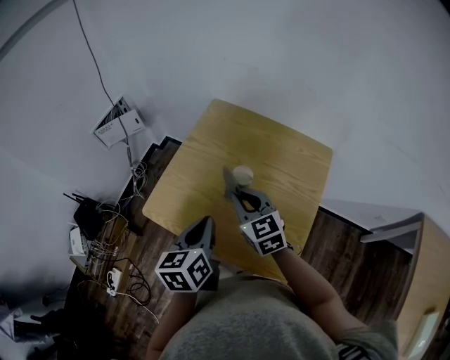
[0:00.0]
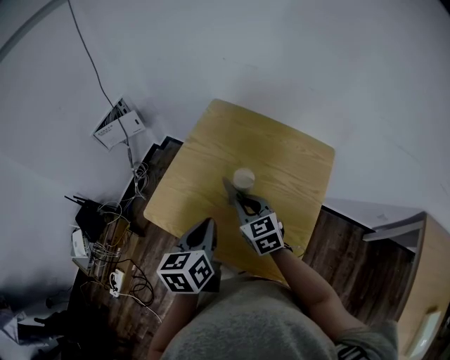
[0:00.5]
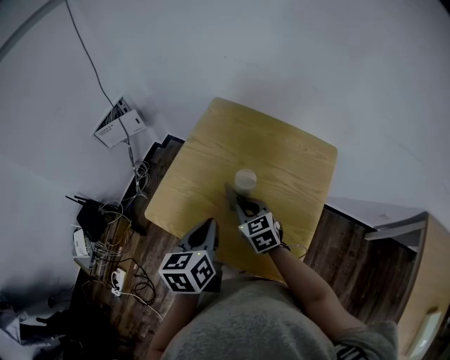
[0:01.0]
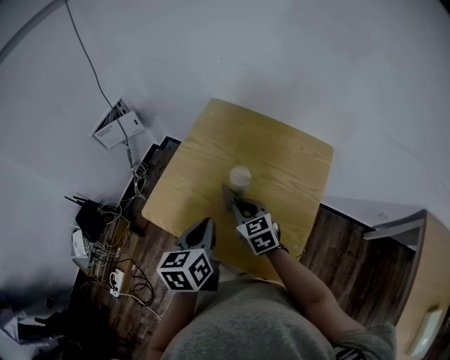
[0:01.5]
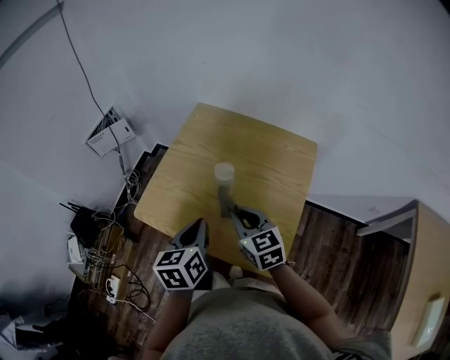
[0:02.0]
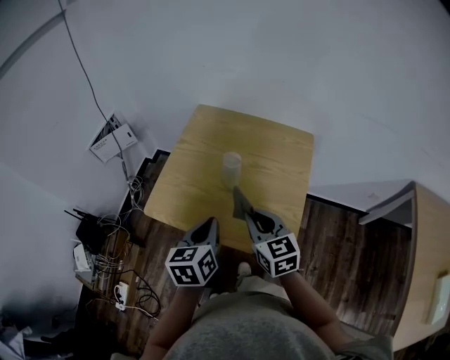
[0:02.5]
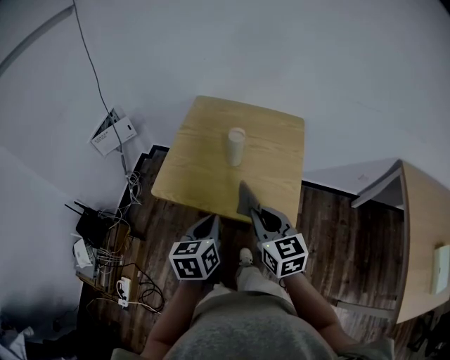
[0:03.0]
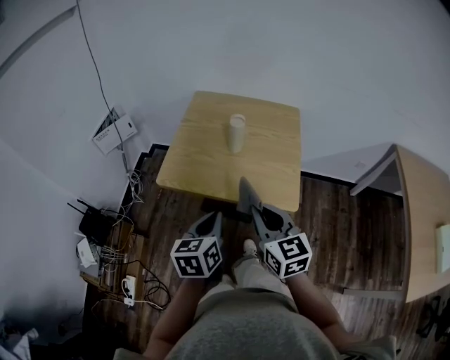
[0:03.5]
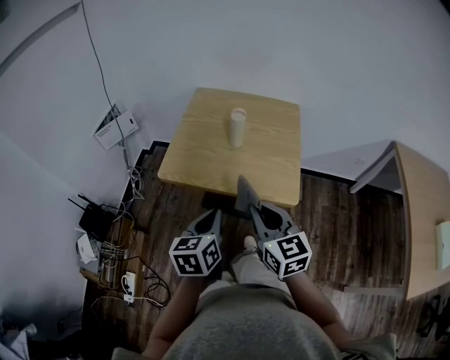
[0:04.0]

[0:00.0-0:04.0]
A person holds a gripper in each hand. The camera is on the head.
0:00.0 to 0:02.0: The right gripper moves backward, approximately 5 cm, and travels downward and back again, roughly 10 cm each way.
0:02.0 to 0:04.0: Both grippers travel together backward, approximately 25 cm. The right gripper rotates roughly 20 degrees.

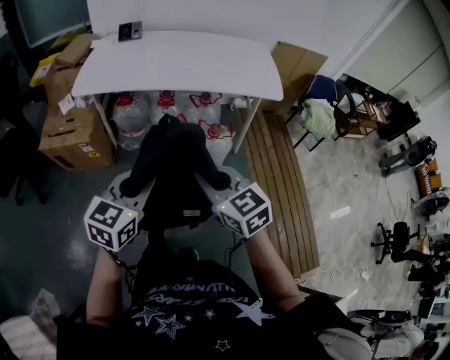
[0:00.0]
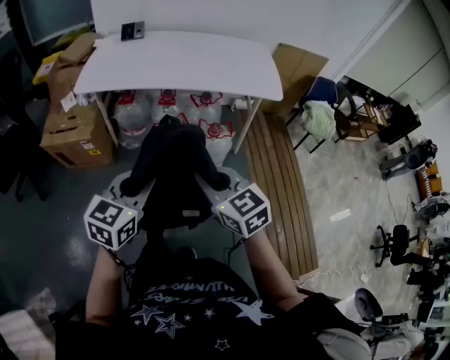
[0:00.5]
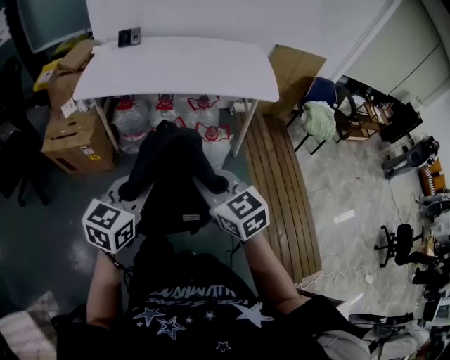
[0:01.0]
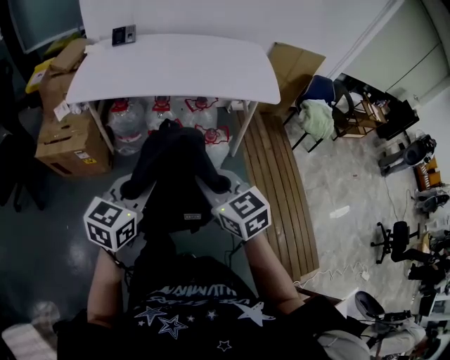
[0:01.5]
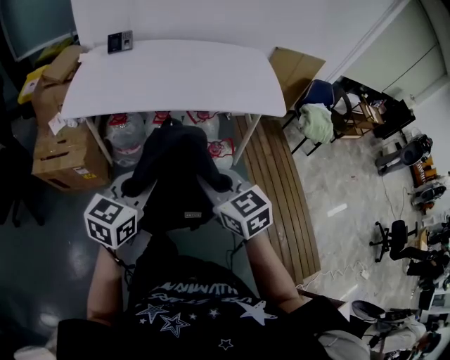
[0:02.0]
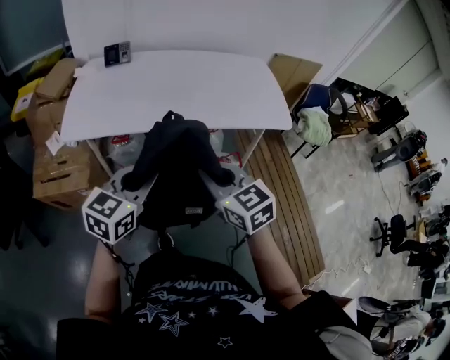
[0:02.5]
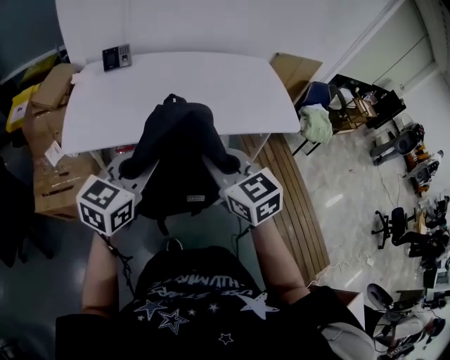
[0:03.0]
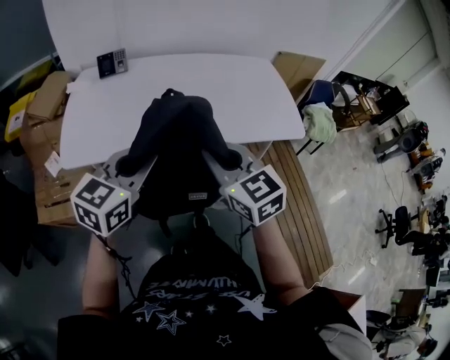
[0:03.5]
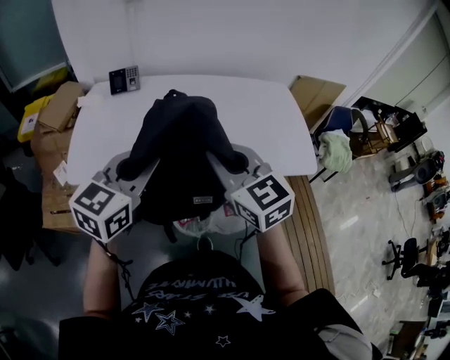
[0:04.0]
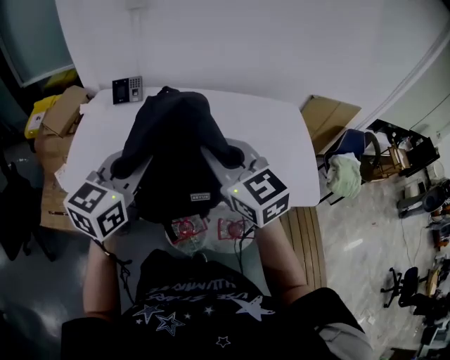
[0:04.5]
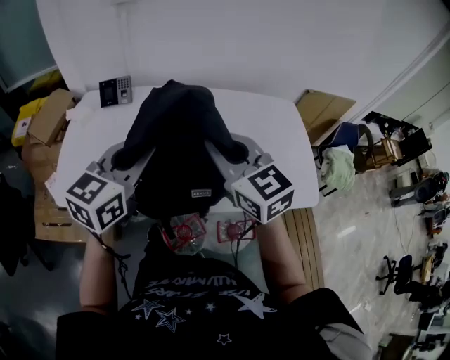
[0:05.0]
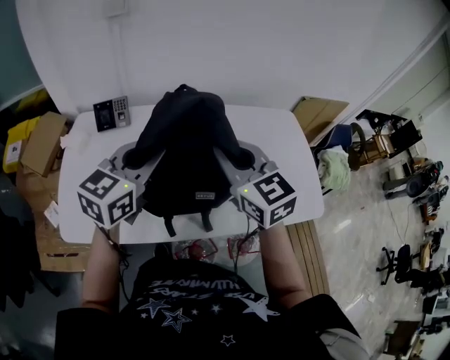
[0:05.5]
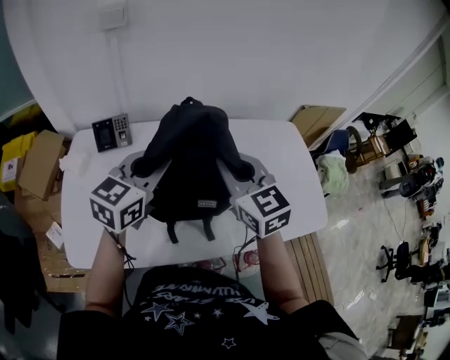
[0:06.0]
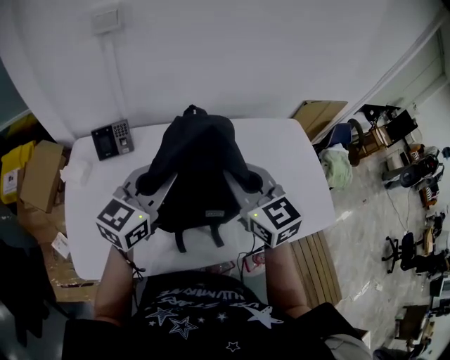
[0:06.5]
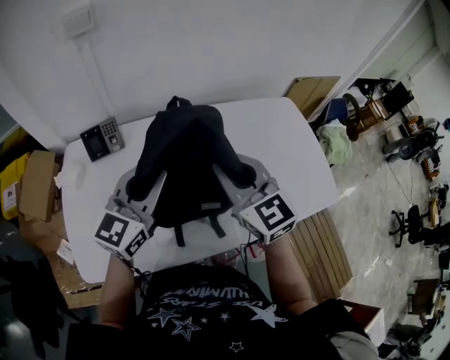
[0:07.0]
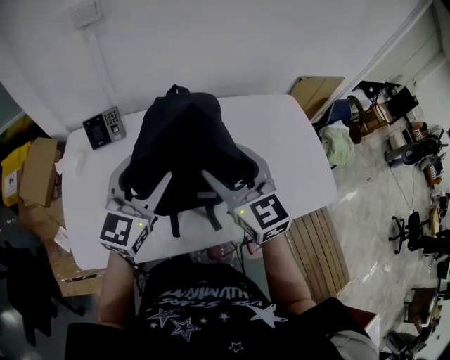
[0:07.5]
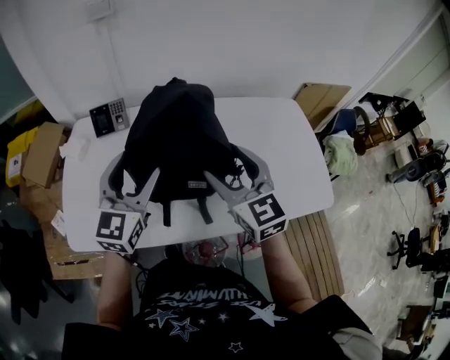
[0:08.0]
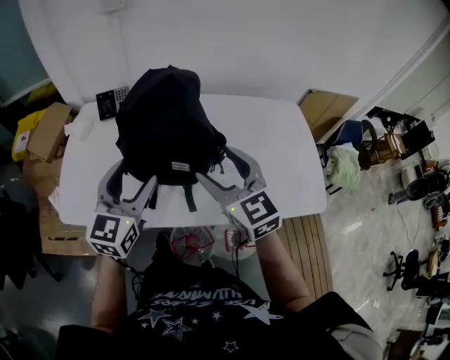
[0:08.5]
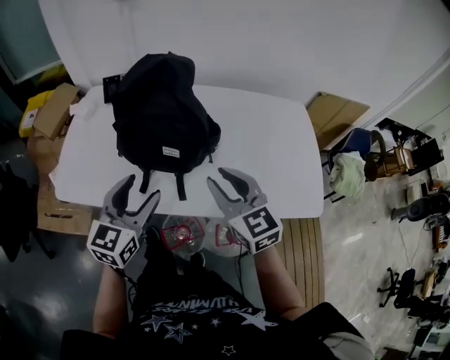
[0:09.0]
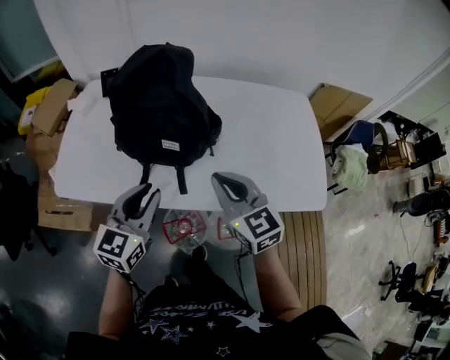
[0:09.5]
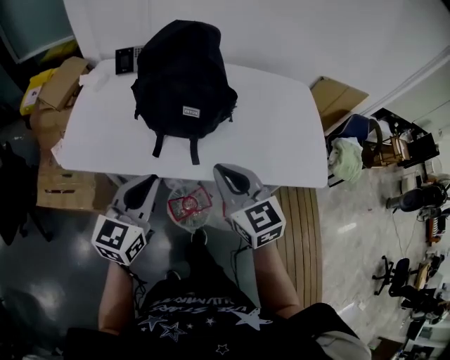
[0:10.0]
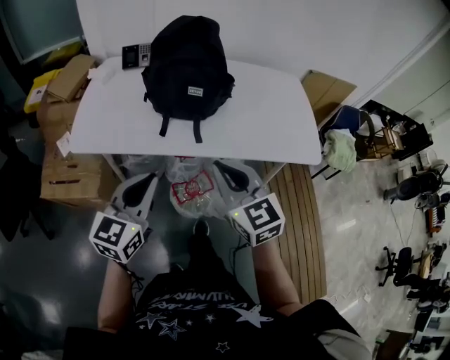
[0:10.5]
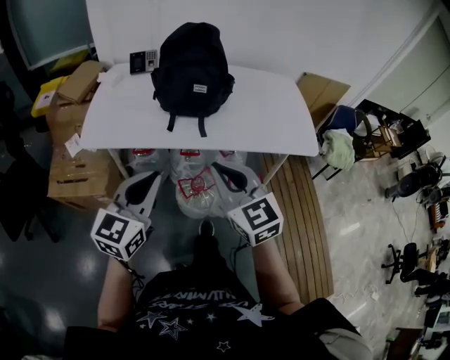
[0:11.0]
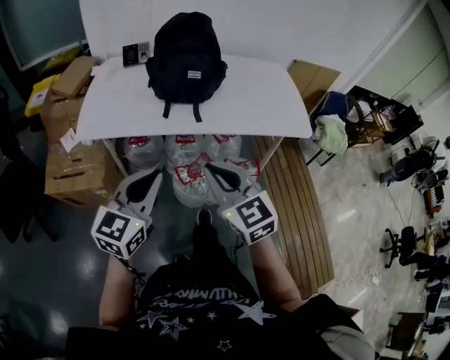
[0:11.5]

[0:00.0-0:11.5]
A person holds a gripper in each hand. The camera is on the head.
0:00.0 to 0:02.0: The grippers both shift forward by some 15 cm.
0:02.0 to 0:04.0: The two grippers go approximately 35 cm forward.
0:04.0 to 0:06.0: Both grippers travel together forward, about 30 cm.
0:06.0 to 0:07.5: The left gripper opens; the right gripper opens.
0:07.5 to 0:09.5: The right gripper is displaced backward, to the right and downward by roughly 20 cm, and closes up. Meanwhile the left gripper goes roughly 20 cm backward and downward, rotates approximately 20 degrees, and closes its fingers.
0:09.5 to 0:11.5: Both grippers travel together backward, about 30 cm.

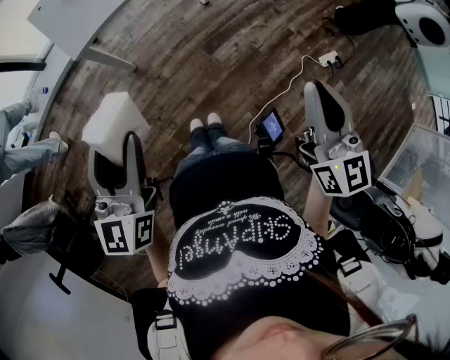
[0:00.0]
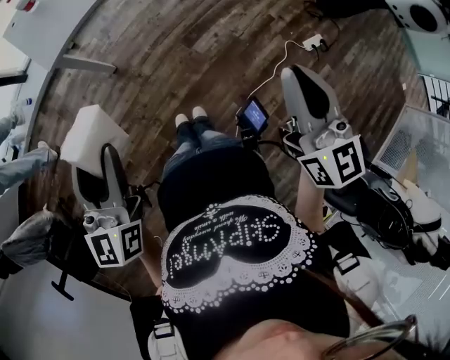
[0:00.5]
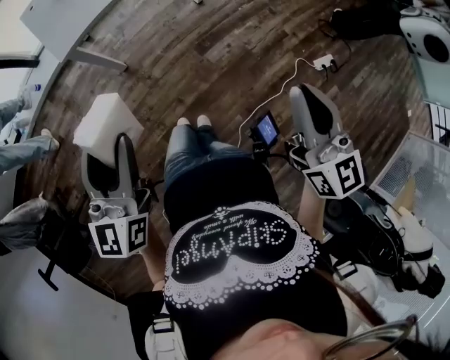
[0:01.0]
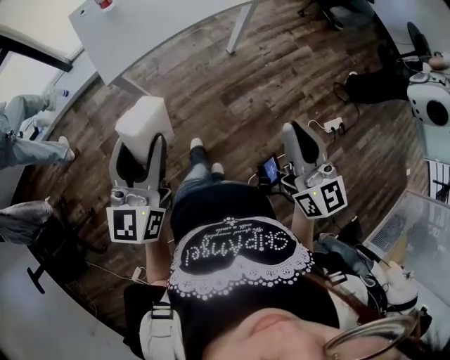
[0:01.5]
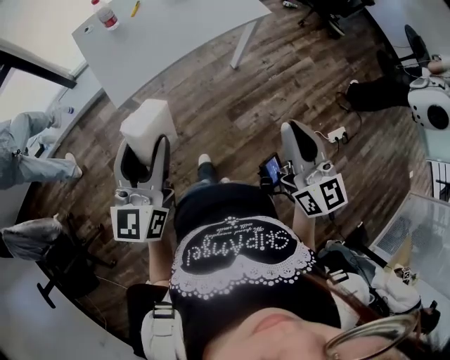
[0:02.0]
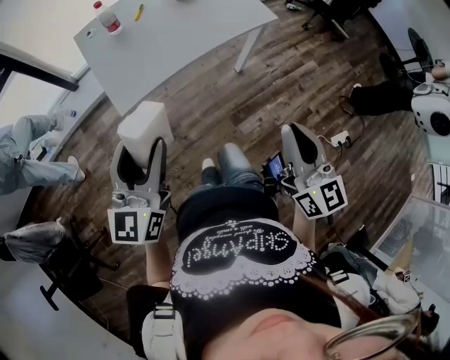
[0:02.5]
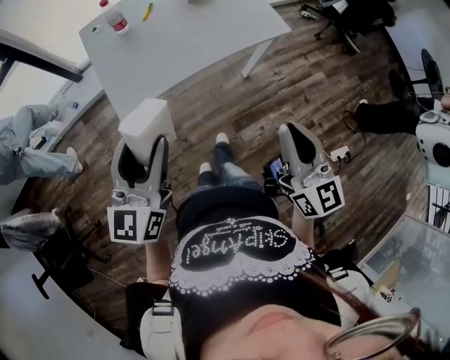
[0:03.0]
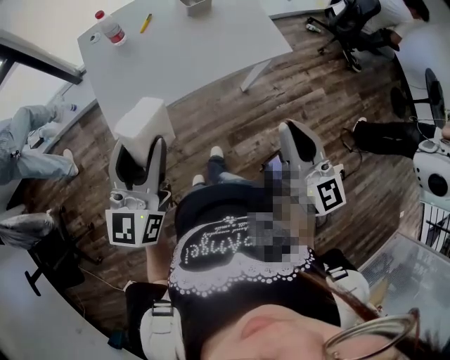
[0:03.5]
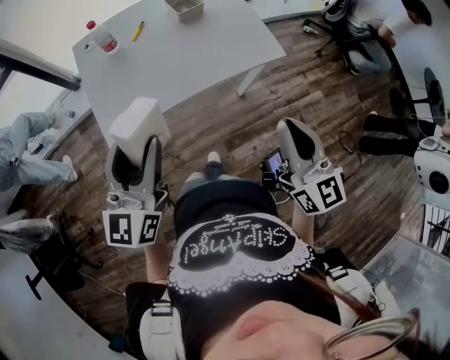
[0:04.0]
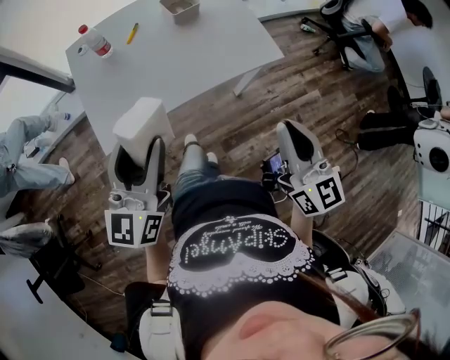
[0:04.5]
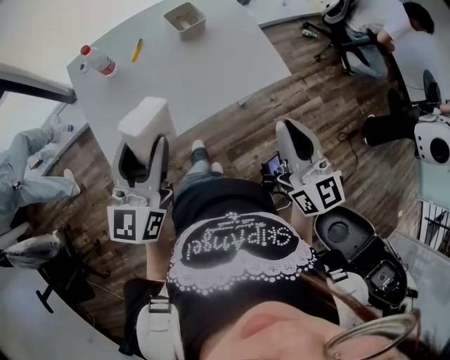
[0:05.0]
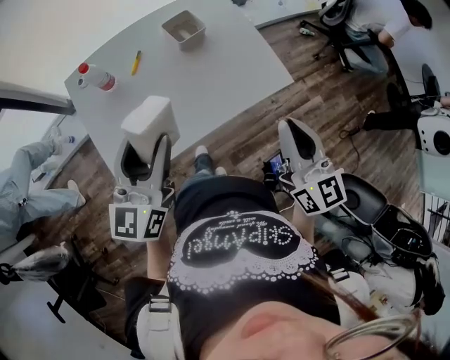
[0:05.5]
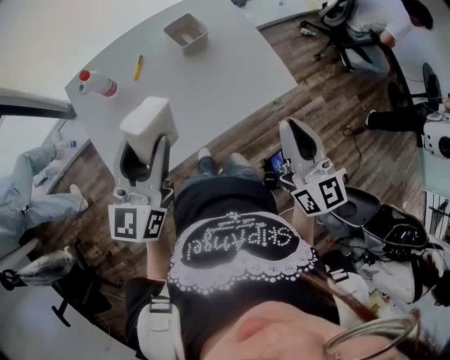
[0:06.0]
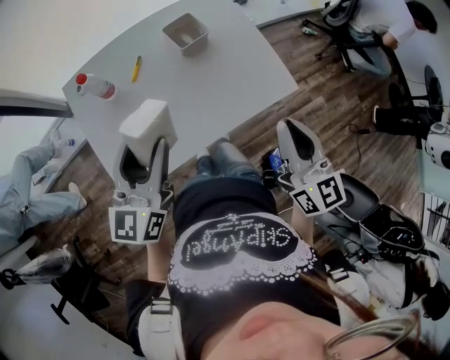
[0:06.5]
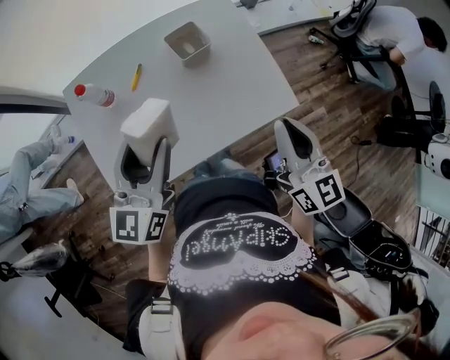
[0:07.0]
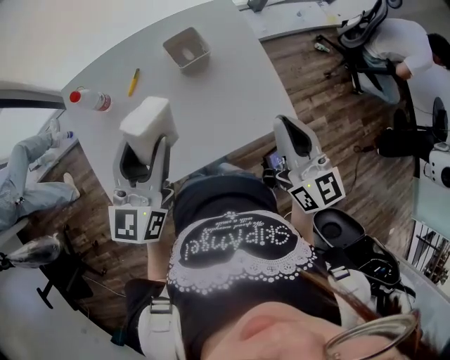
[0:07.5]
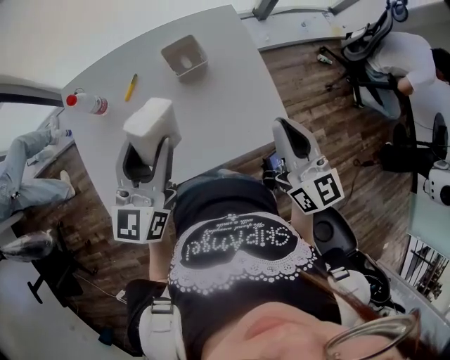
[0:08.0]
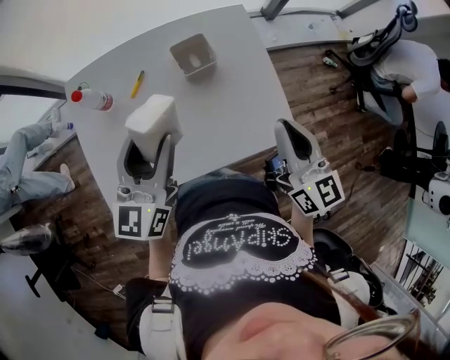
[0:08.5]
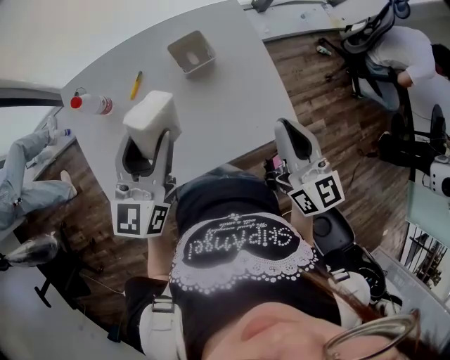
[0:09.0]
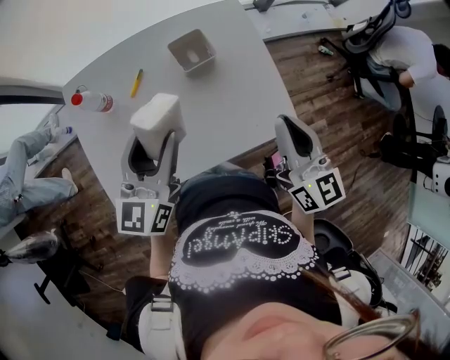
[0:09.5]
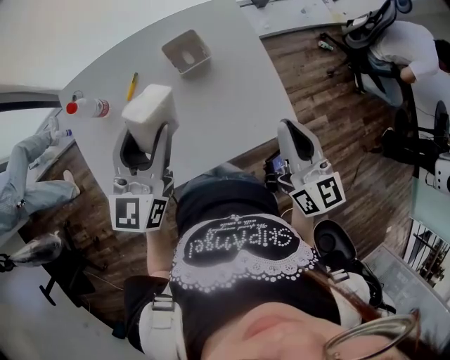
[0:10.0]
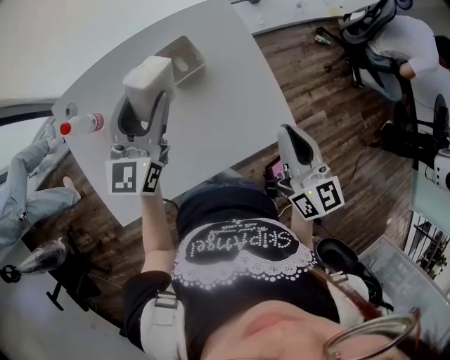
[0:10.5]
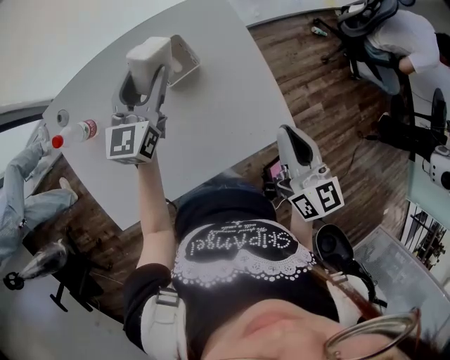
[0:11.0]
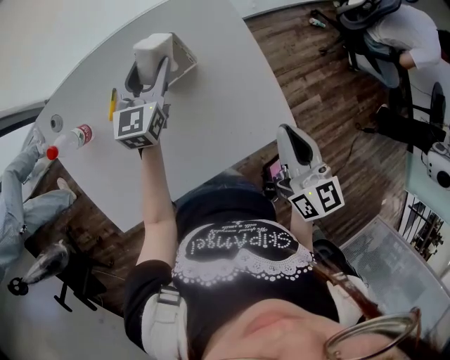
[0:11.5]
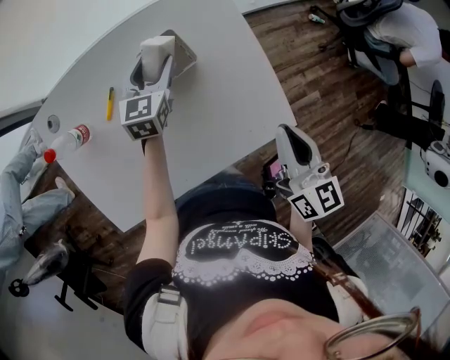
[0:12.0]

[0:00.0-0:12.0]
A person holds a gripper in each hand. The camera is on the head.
0:00.0 to 0:02.0: The left gripper travels forward by roughly 15 cm. Meanwhile the right gripper travels forward and to the left by about 20 cm.
0:02.0 to 0:04.0: The two grippers go about 20 cm forward.
0:04.0 to 0:06.0: The two grippers go about 20 cm forward.
0:06.0 to 0:08.0: The right gripper travels forward by about 15 cm. The left gripper moves forward and to the right, roughly 15 cm.
0:08.0 to 0:10.0: The left gripper shifts approximately 5 cm forward.
0:10.0 to 0:12.0: The right gripper is displaced downward by roughly 5 cm, while the left gripper is displaced forward and downward by some 30 cm, and swivels roughly 20 degrees.
